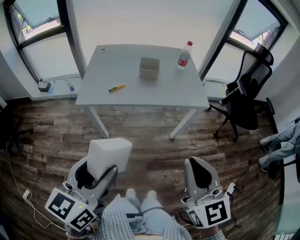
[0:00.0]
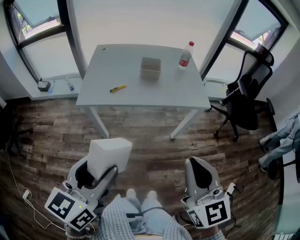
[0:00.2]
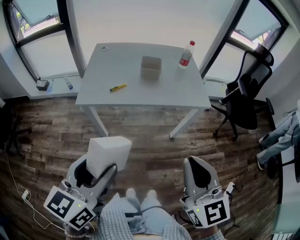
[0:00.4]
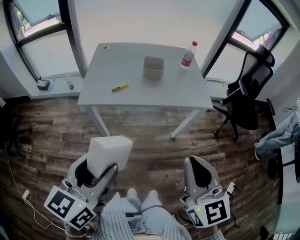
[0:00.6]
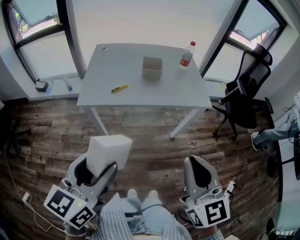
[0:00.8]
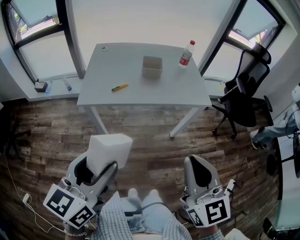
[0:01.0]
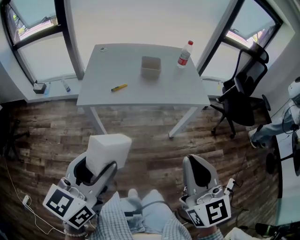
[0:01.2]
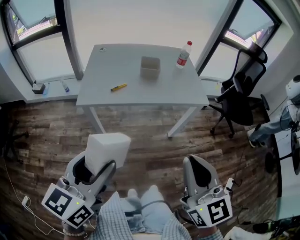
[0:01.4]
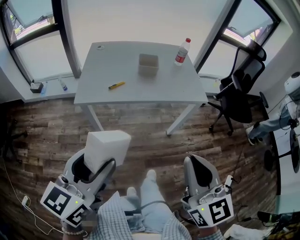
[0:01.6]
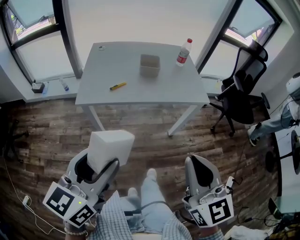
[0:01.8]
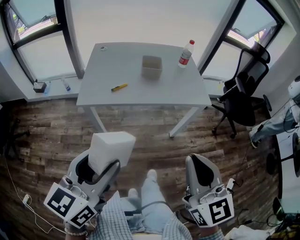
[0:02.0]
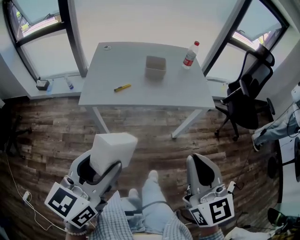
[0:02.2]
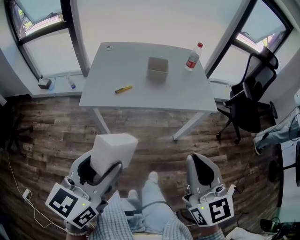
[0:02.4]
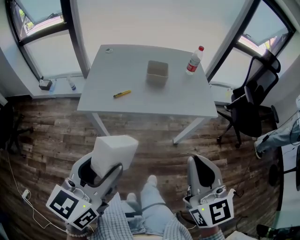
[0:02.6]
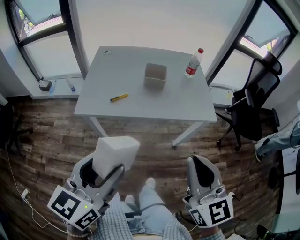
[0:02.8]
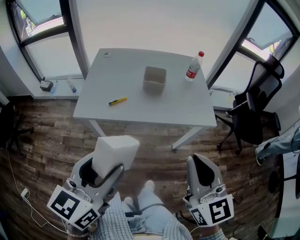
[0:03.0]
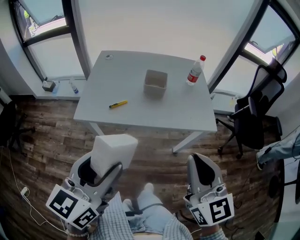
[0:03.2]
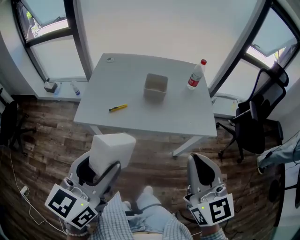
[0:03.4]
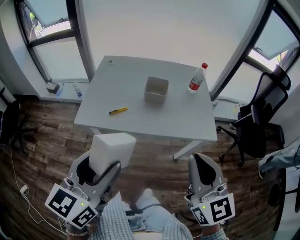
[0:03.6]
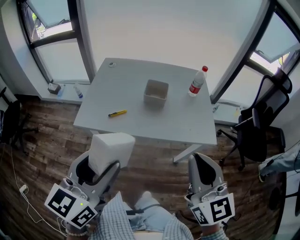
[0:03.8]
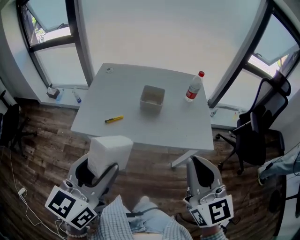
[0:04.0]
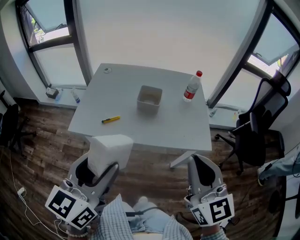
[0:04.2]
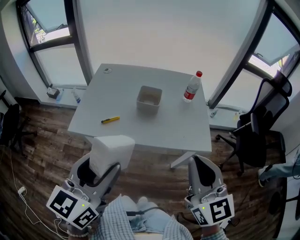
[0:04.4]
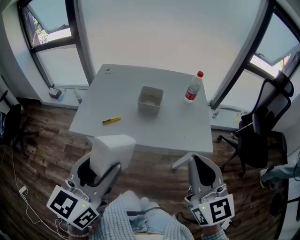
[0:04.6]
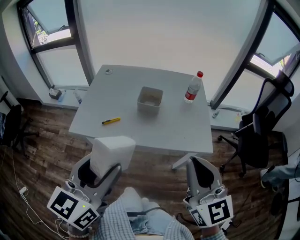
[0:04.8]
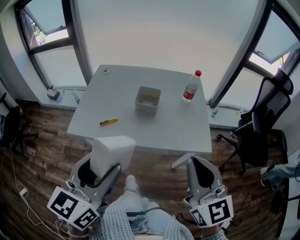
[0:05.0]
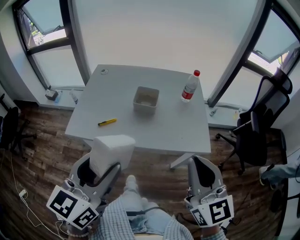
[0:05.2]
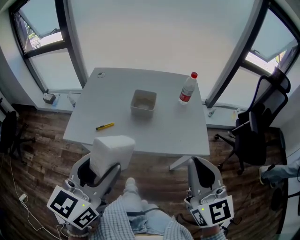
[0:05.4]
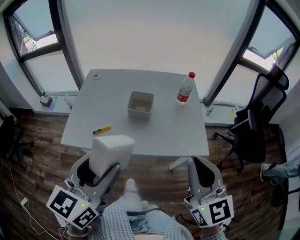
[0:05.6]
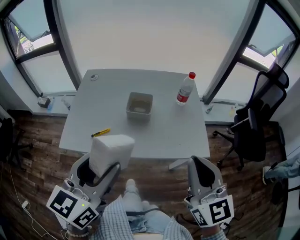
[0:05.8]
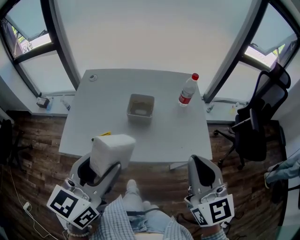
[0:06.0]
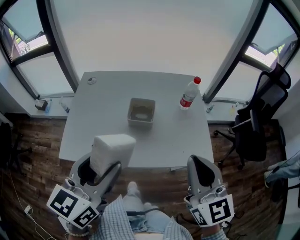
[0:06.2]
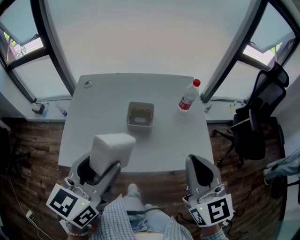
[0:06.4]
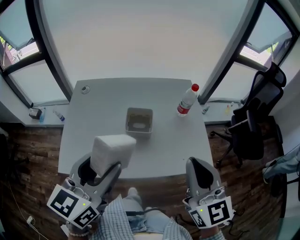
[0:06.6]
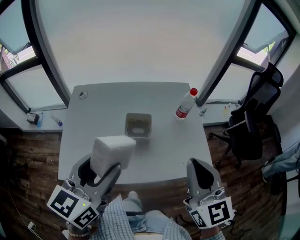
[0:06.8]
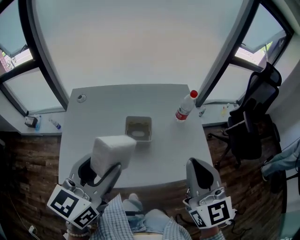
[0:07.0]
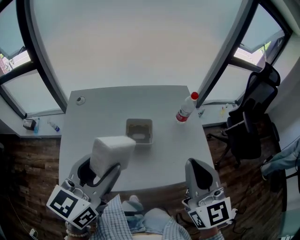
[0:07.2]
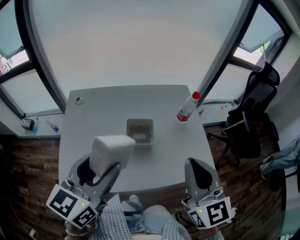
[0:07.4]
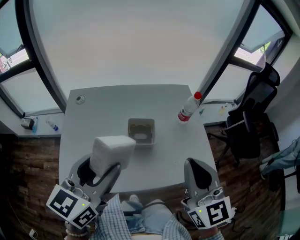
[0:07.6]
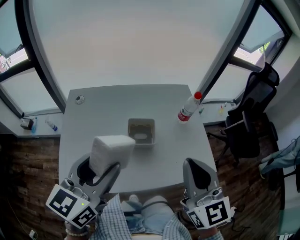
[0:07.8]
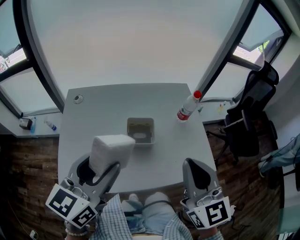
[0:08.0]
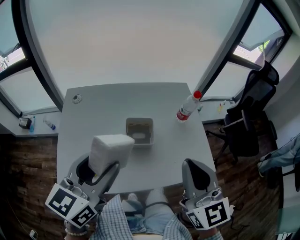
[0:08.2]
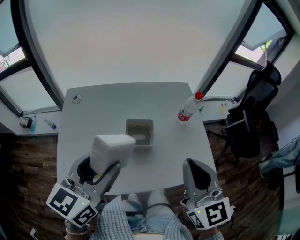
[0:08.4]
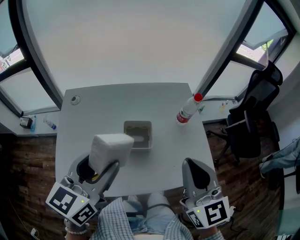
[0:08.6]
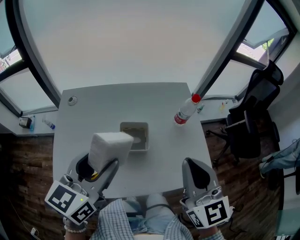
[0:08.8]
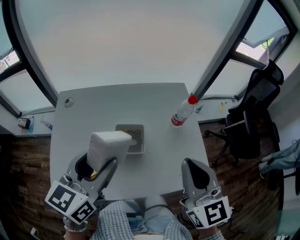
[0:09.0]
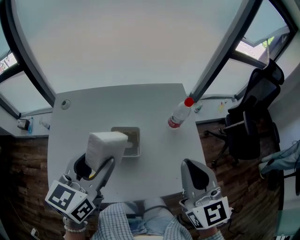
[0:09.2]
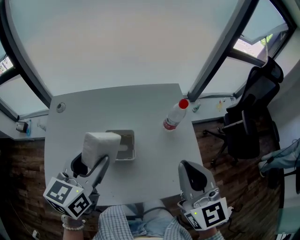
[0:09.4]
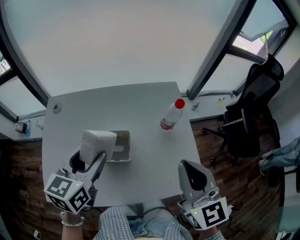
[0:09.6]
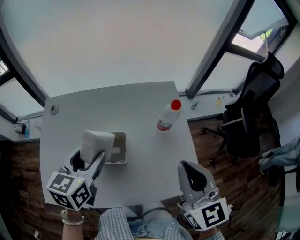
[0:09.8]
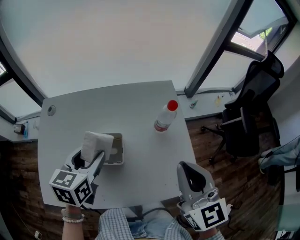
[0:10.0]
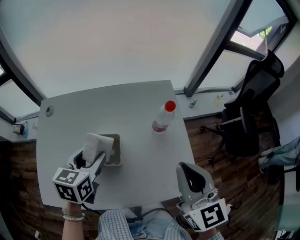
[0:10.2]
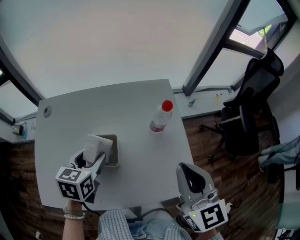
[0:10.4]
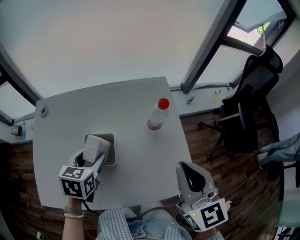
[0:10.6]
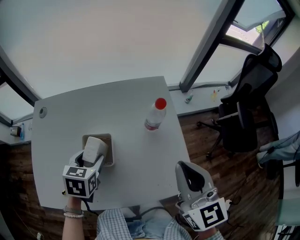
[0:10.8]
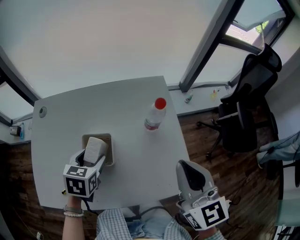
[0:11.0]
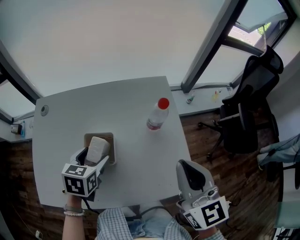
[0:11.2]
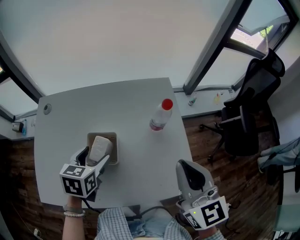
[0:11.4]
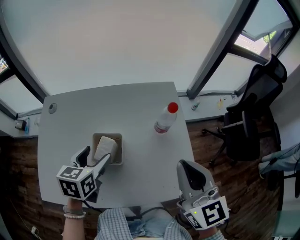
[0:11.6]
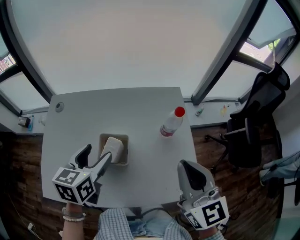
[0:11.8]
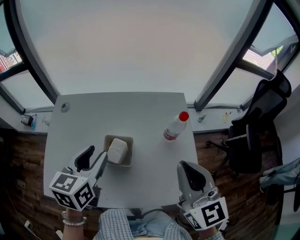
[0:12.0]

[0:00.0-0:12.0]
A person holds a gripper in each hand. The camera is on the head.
0:00.0 to 0:01.6: The grippers stay close to where they were, moving slightly.
0:01.6 to 0:03.0: The right gripper travels forward by roughly 15 cm. The left gripper goes about 10 cm forward and to the right.
0:03.0 to 0:04.4: The two grippers go approximately 10 cm forward and to the right.
0:04.4 to 0:06.0: Both grippers move forward, approximately 10 cm.
0:06.0 to 0:07.6: Both grippers move forward and to the left, roughly 15 cm.
0:07.6 to 0:09.0: Both grippers move forward, some 5 cm.
0:09.0 to 0:10.4: The right gripper is displaced to the right by some 10 cm. The left gripper travels downward and forward by roughly 20 cm, and turns by some 30 degrees.
0:10.4 to 0:12.0: The left gripper heads upward, covering some 10 cm. The right gripper changes place by approximately 5 cm.

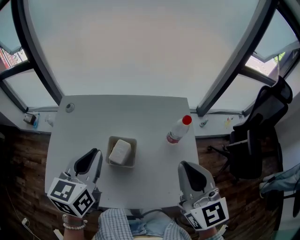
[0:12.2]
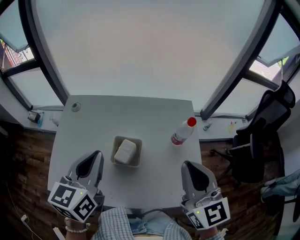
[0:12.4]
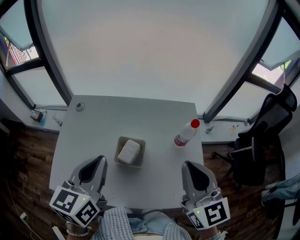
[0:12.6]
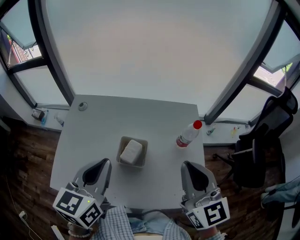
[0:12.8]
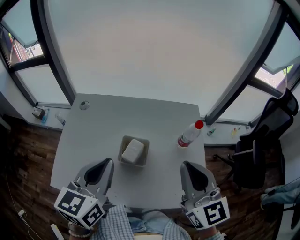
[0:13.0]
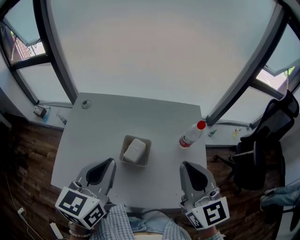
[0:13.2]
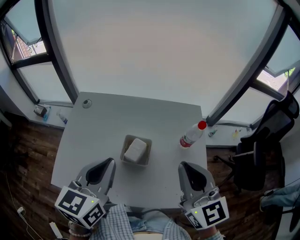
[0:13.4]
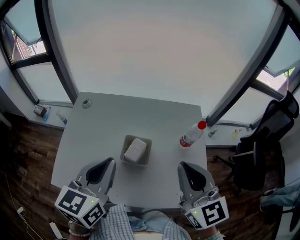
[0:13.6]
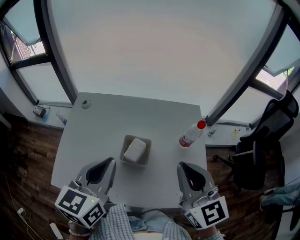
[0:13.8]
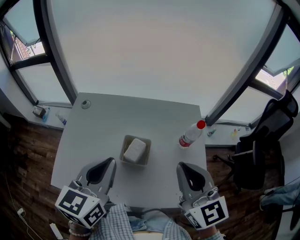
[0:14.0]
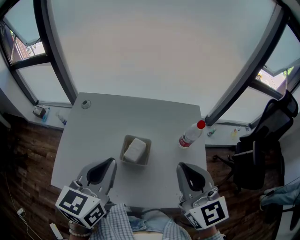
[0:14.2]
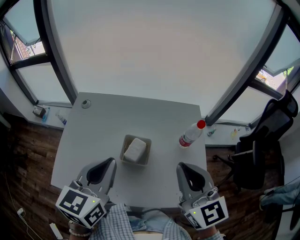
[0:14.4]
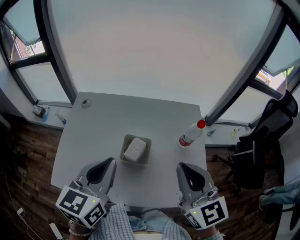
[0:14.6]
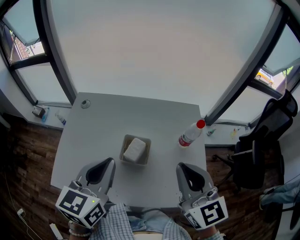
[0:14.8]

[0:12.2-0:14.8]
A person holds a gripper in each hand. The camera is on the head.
0:12.2 to 0:13.4: The left gripper shifts approximately 5 cm backward.
0:13.4 to 0:14.8: Neither gripper changes place.

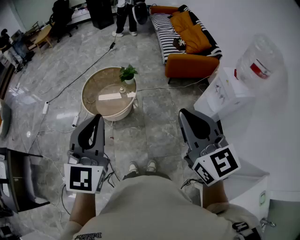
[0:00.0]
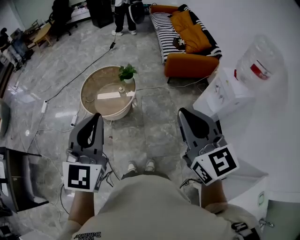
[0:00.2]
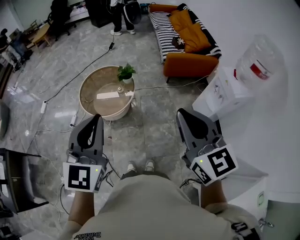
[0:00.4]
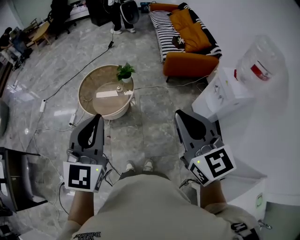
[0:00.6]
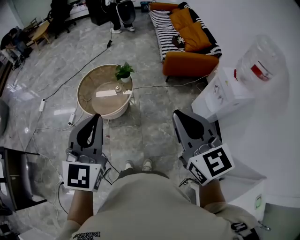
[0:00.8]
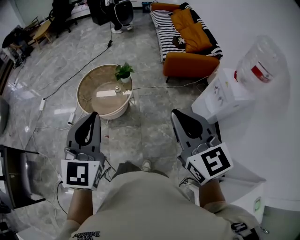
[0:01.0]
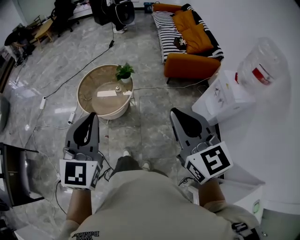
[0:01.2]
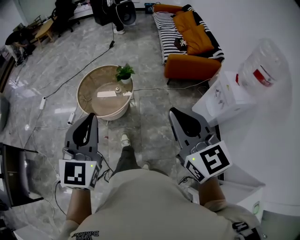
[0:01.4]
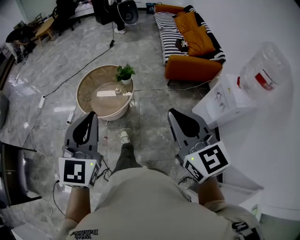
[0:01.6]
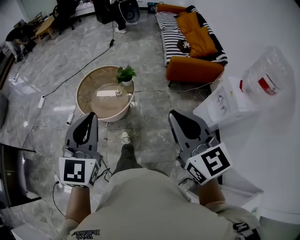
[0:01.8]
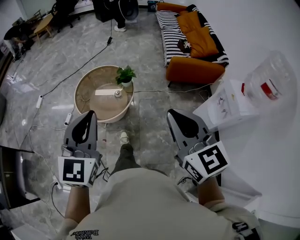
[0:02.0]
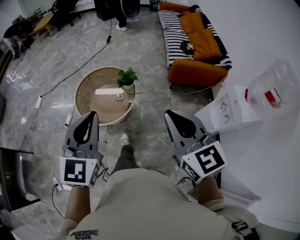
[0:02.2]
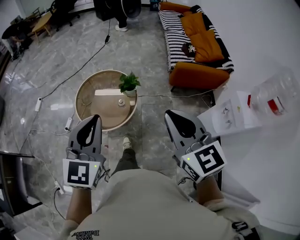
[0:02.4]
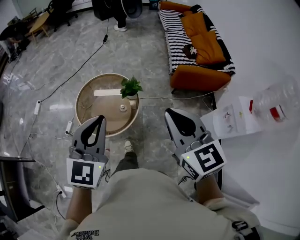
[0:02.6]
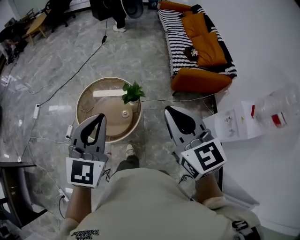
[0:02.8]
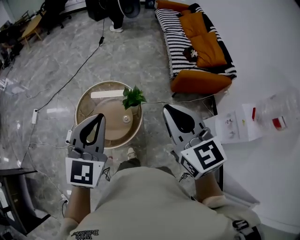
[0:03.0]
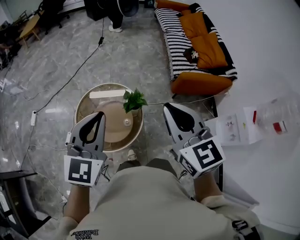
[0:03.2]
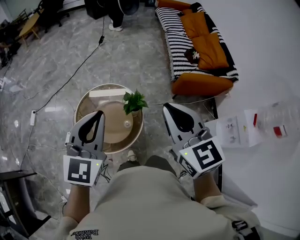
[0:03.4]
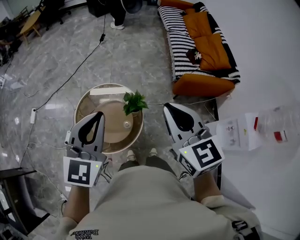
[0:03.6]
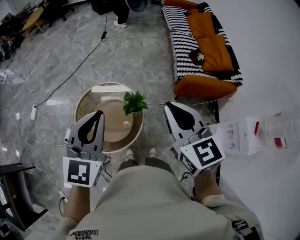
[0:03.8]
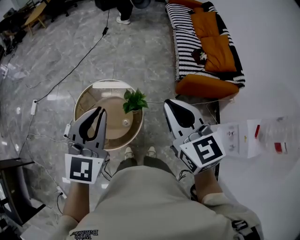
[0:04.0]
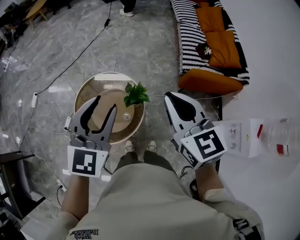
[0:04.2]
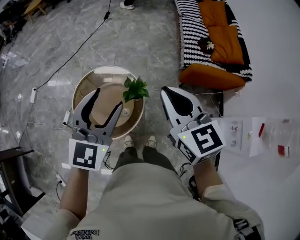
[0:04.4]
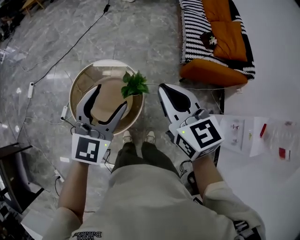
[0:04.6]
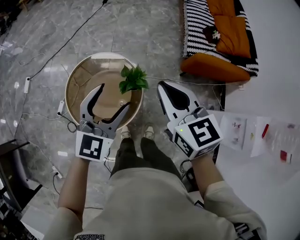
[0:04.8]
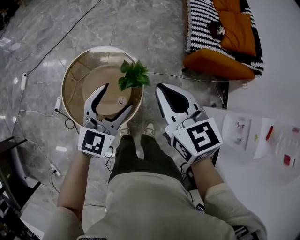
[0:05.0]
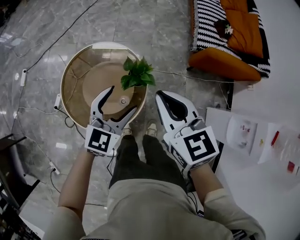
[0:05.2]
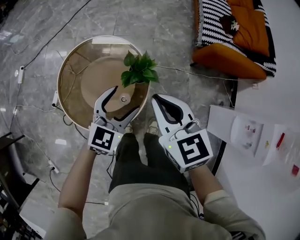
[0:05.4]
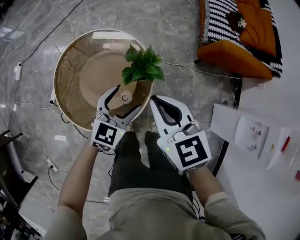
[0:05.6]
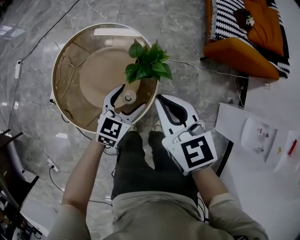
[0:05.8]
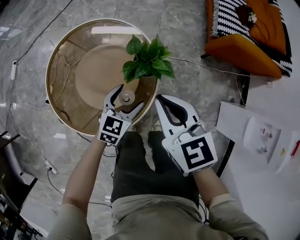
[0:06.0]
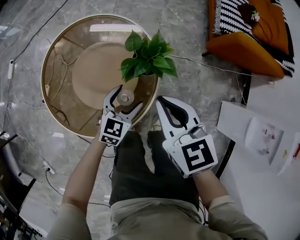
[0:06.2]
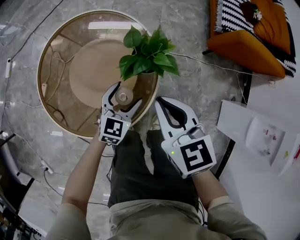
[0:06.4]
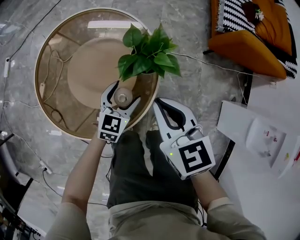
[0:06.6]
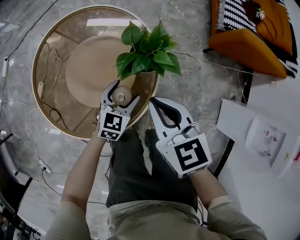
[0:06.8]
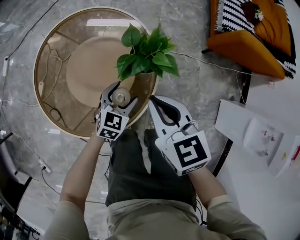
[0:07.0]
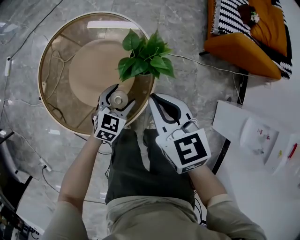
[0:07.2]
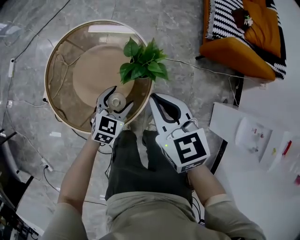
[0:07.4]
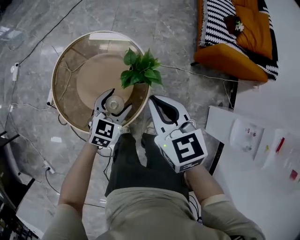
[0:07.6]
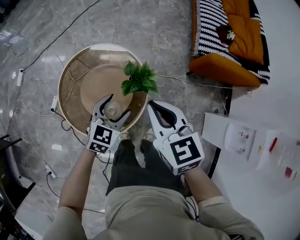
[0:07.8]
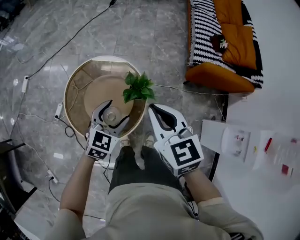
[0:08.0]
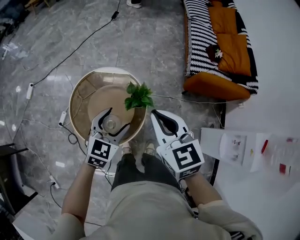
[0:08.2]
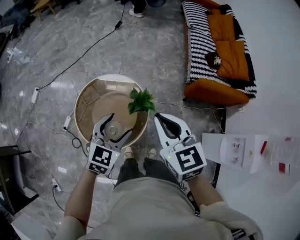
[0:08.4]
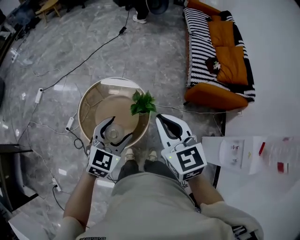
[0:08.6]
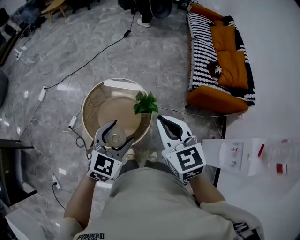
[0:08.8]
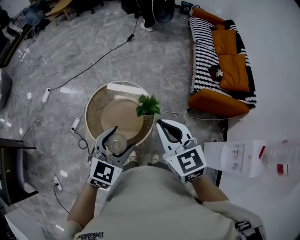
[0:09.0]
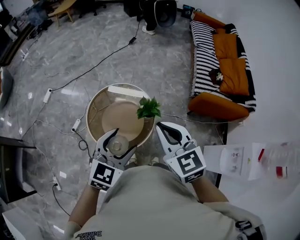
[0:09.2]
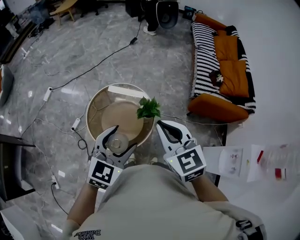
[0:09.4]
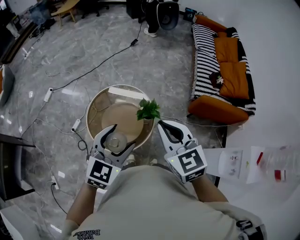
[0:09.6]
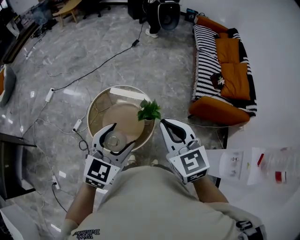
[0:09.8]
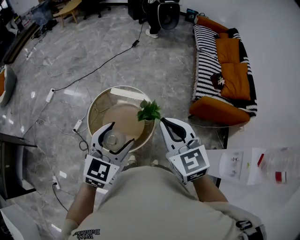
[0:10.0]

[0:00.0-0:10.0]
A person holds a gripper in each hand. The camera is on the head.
0:00.0 to 0:01.4: The right gripper travels forward by some 5 cm, while the left gripper changes place by about 5 cm.
0:01.4 to 0:02.8: Both grippers move forward, roughly 30 cm.
0:02.8 to 0:04.2: The two grippers go about 20 cm forward. The left gripper opens up.
0:04.2 to 0:05.8: Both grippers travel together downward, approximately 40 cm. The left gripper rotates approximately 30 degrees, and opens its fingers.
0:05.8 to 0:07.2: The two grippers go about 10 cm downward.
0:07.2 to 0:08.6: The grippers both shift upward by roughly 40 cm.
0:08.6 to 0:10.0: The left gripper goes some 10 cm upward; the right gripper travels upward by approximately 5 cm.
